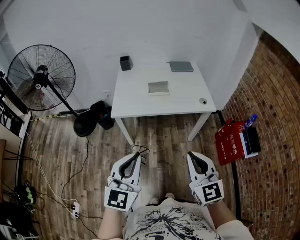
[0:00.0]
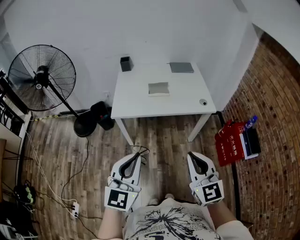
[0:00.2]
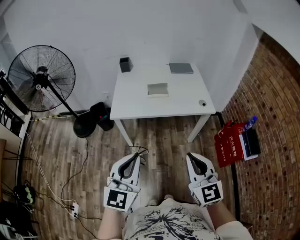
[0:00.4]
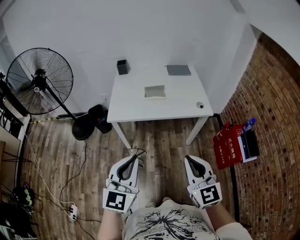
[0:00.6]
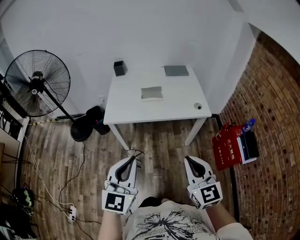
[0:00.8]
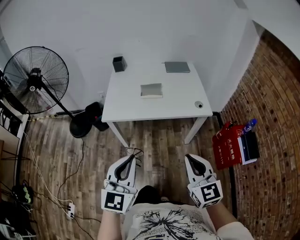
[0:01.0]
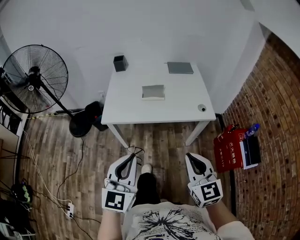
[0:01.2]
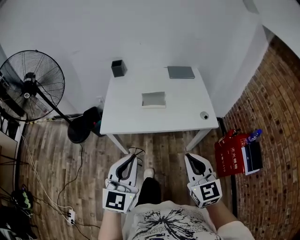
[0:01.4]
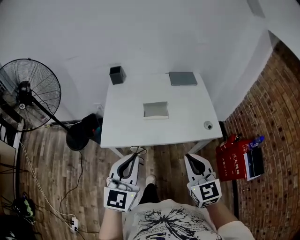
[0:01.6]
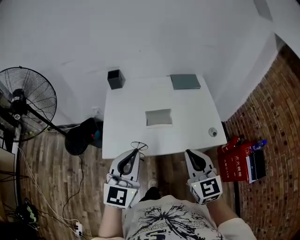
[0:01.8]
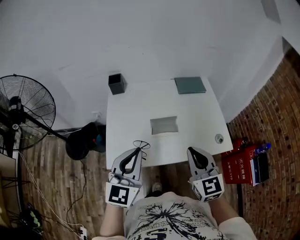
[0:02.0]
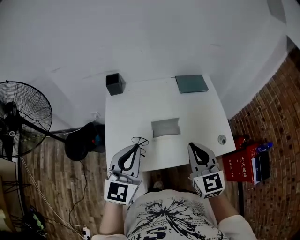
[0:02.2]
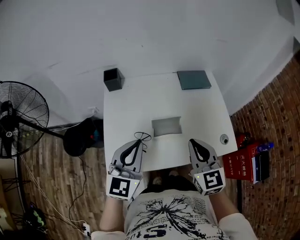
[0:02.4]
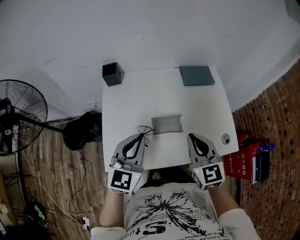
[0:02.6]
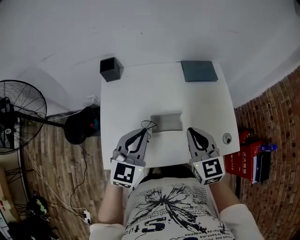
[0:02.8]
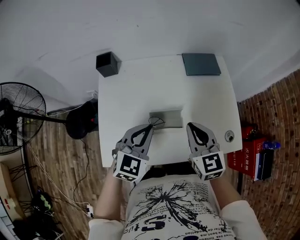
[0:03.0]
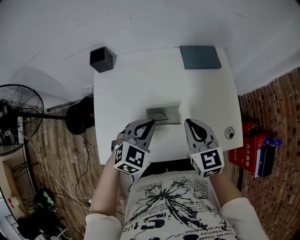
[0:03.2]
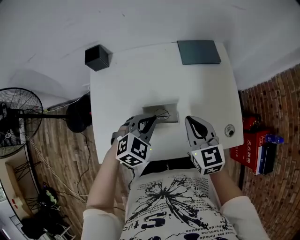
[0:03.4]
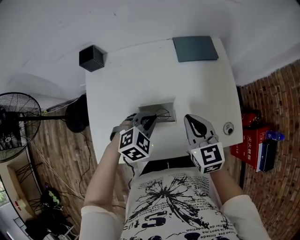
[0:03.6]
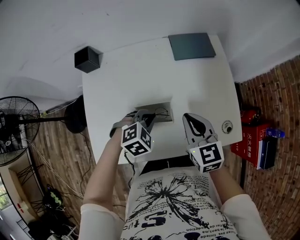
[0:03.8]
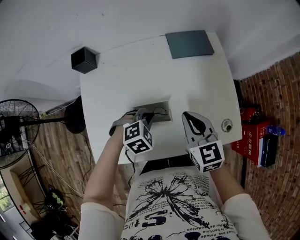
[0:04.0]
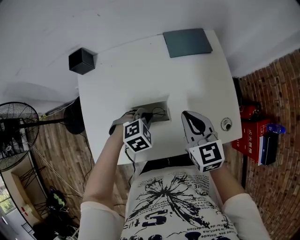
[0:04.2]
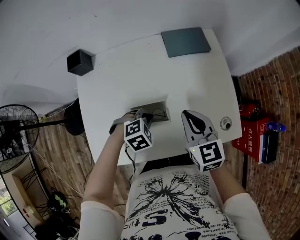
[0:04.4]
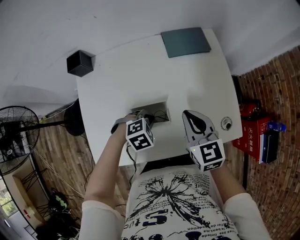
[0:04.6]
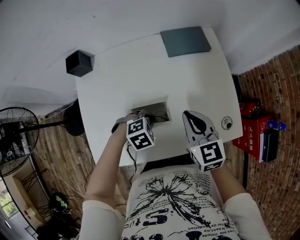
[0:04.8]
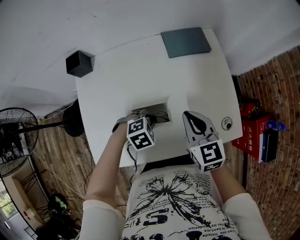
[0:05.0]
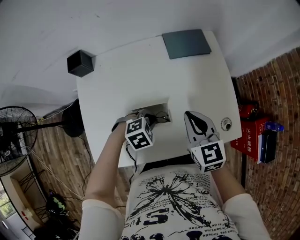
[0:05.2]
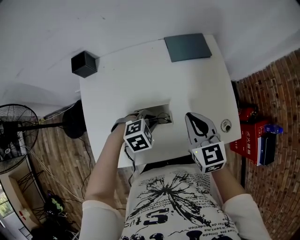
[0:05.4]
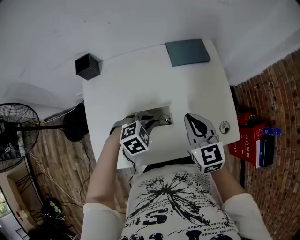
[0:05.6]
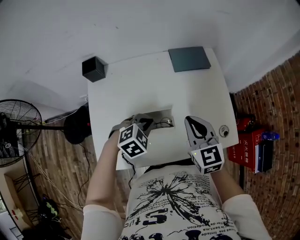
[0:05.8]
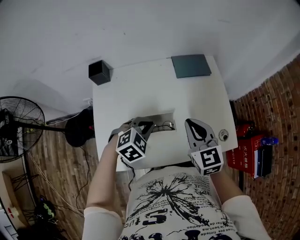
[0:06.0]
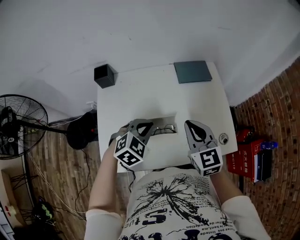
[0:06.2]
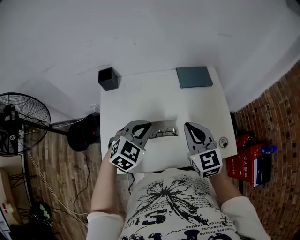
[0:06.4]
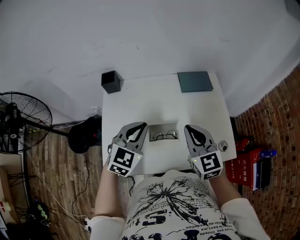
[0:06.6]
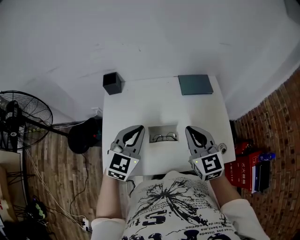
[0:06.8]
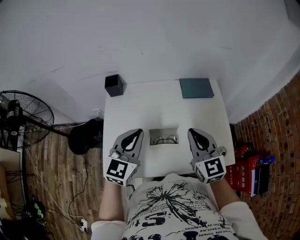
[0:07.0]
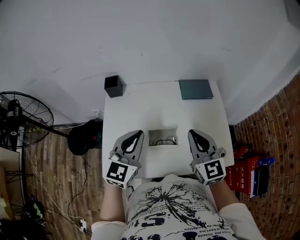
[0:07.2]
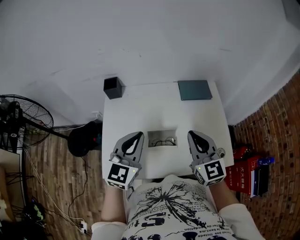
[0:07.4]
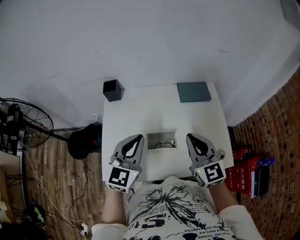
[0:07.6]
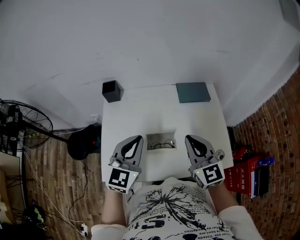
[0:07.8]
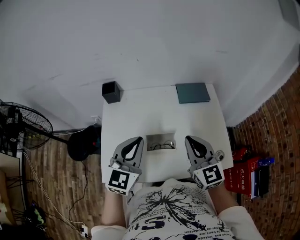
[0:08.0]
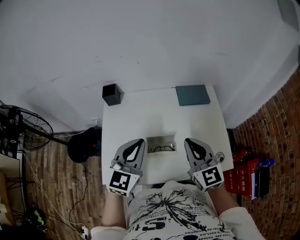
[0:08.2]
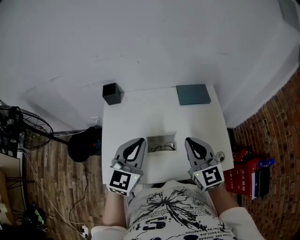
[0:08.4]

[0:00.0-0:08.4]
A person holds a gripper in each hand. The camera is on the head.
0:00.0 to 0:01.4: Both grippers move forward, approximately 15 cm.
0:01.4 to 0:02.8: Both grippers are carried forward, some 40 cm. The left gripper changes its angle by some 20 degrees.
0:02.8 to 0:04.2: The right gripper heads downward, to the right and forward, covering approximately 10 cm. Meanwhile the left gripper is displaced downward and to the right by roughly 25 cm, and tips its fingers downward by roughly 50 degrees.
0:04.2 to 0:05.6: The grippers stay close to where they were, moving slightly.
0:05.6 to 0:07.0: The right gripper moves upward, about 10 cm. Meanwhile the left gripper heads upward, covering roughly 20 cm, and points its fingers roughly 50 degrees further upward.
0:07.0 to 0:08.4: There are only small adjustments of the grippers.

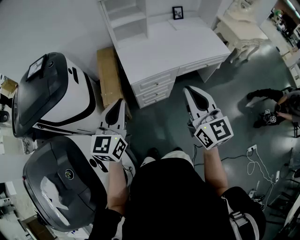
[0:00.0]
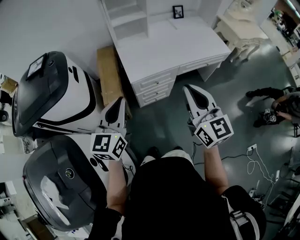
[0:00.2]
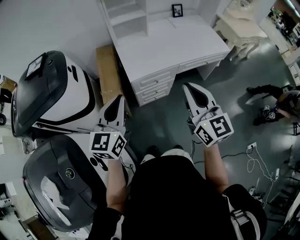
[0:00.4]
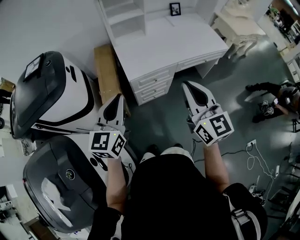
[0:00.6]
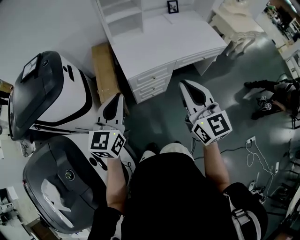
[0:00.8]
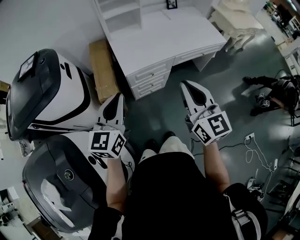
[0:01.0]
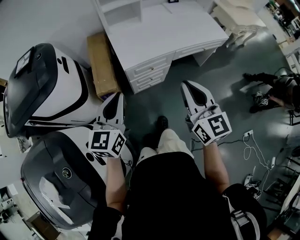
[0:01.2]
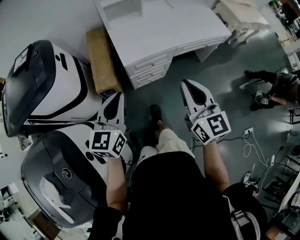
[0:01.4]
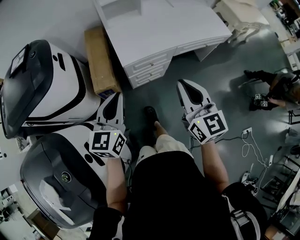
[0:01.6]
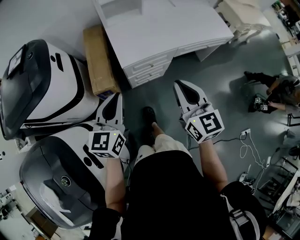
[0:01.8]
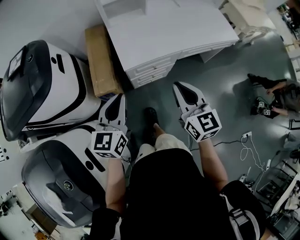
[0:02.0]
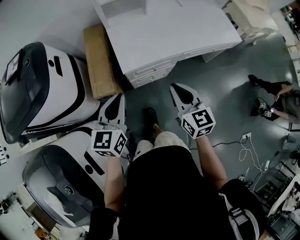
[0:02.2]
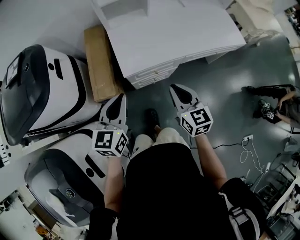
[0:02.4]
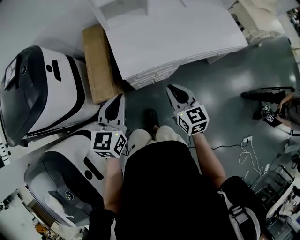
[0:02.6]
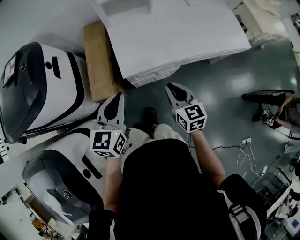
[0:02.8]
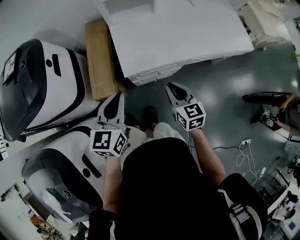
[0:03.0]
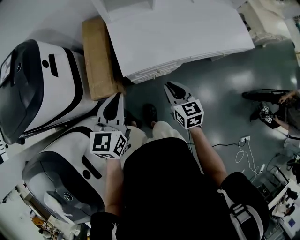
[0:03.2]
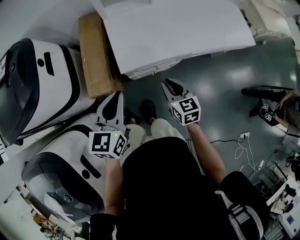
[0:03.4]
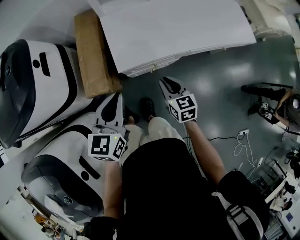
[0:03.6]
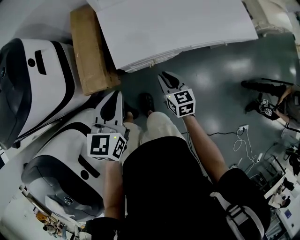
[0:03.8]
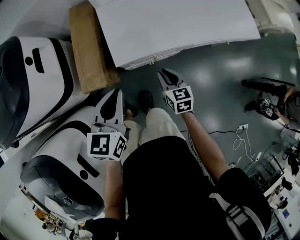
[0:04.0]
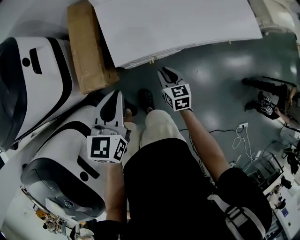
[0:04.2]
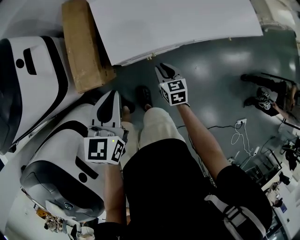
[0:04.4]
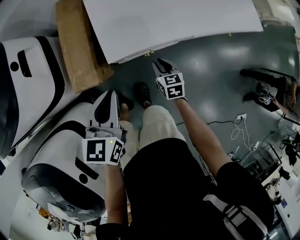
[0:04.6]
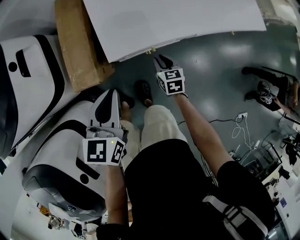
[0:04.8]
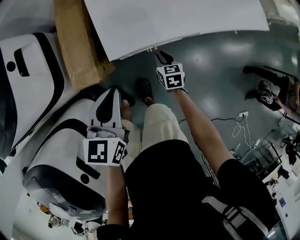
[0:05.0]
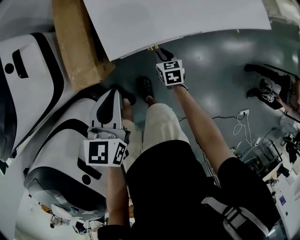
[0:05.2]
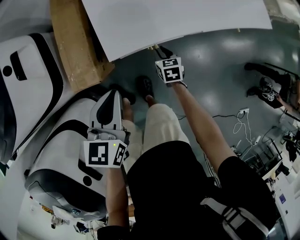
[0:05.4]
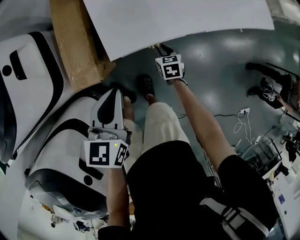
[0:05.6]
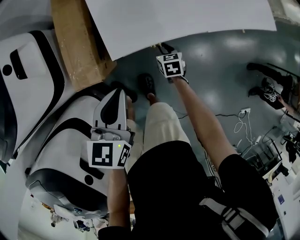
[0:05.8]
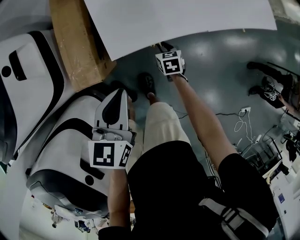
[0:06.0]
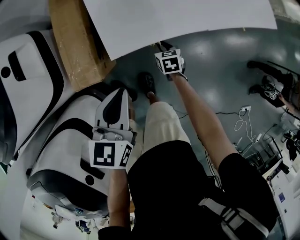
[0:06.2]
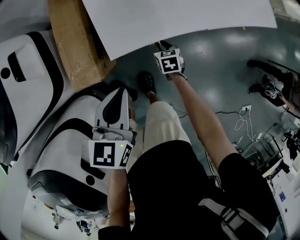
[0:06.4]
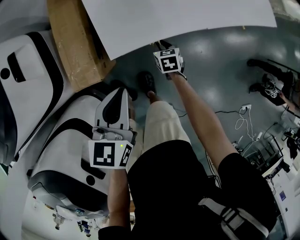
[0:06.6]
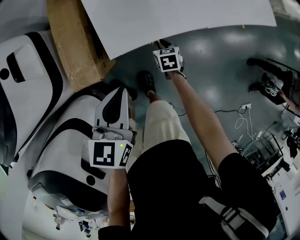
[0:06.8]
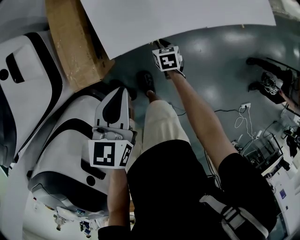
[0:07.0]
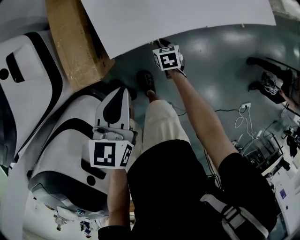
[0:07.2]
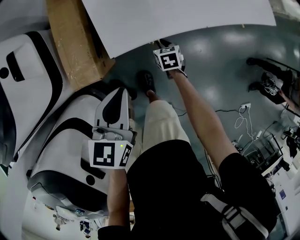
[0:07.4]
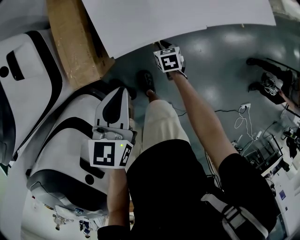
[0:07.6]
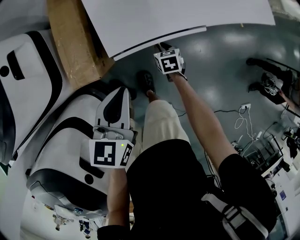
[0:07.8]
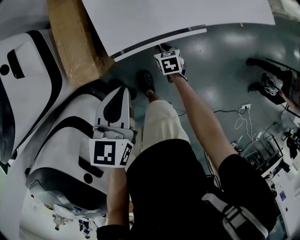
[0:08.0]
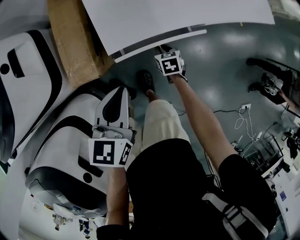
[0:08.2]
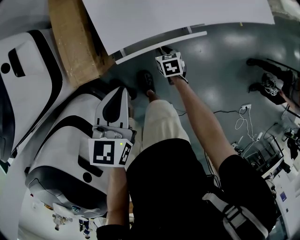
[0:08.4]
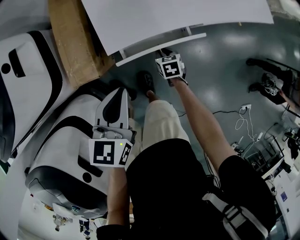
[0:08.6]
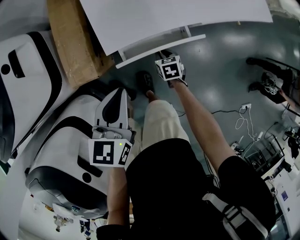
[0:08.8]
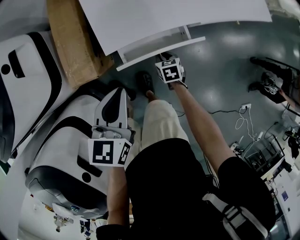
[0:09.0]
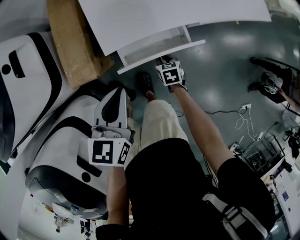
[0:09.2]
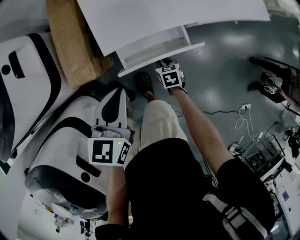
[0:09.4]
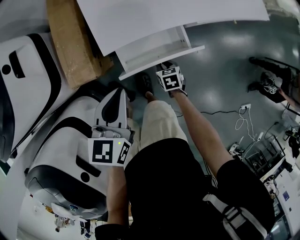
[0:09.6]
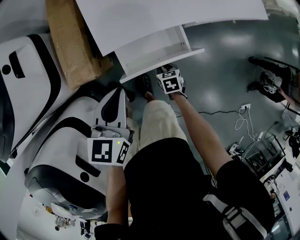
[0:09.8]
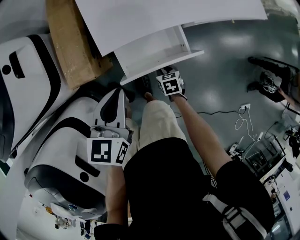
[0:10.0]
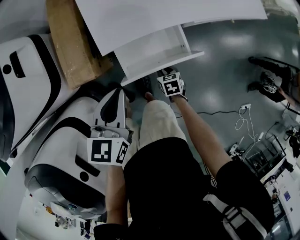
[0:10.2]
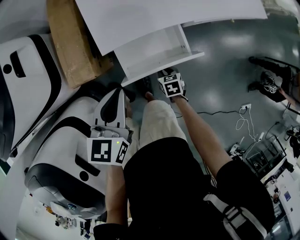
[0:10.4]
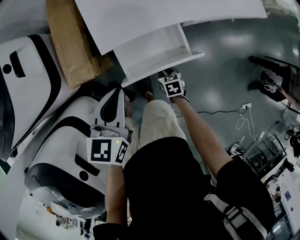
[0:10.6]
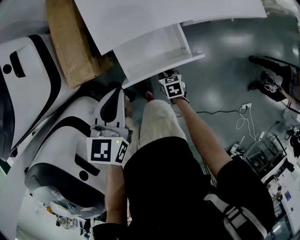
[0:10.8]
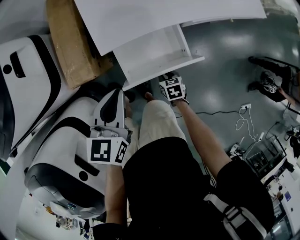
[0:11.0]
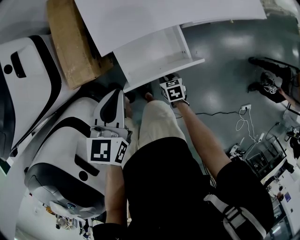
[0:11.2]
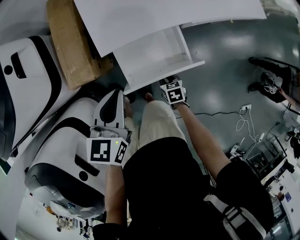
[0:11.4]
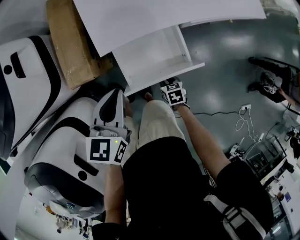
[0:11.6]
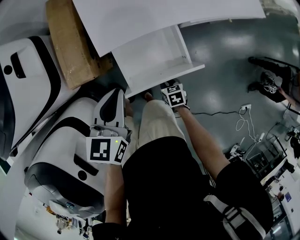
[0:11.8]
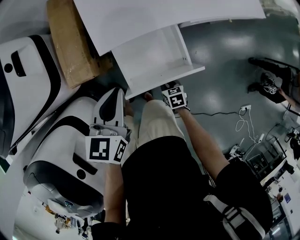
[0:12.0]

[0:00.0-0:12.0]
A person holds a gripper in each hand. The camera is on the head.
0:00.0 to 0:01.6: The two grippers go roughly 5 cm downward.
0:01.6 to 0:03.0: The right gripper heads downward and forward, covering some 30 cm, and swivels approximately 20 degrees, while the left gripper is displaced forward by some 15 cm.
0:03.0 to 0:04.4: The left gripper moves downward, some 10 cm, while the right gripper is displaced downward by roughly 20 cm.
0:04.4 to 0:06.0: The left gripper heads downward, covering roughly 5 cm; the right gripper is displaced downward and forward by approximately 15 cm.
0:06.0 to 0:07.6: The two grippers keep their place.
0:07.6 to 0:09.0: The right gripper heads backward, covering roughly 5 cm.
0:09.0 to 0:10.4: The right gripper is displaced backward by roughly 10 cm.
0:10.4 to 0:12.0: The right gripper goes roughly 5 cm backward.

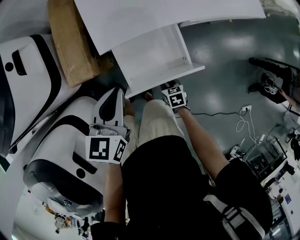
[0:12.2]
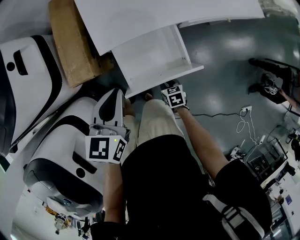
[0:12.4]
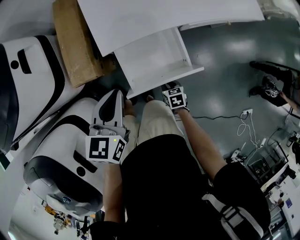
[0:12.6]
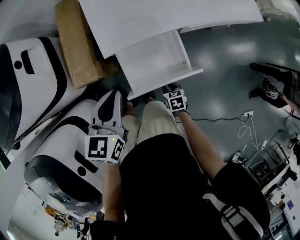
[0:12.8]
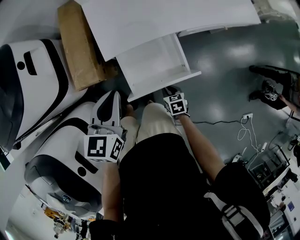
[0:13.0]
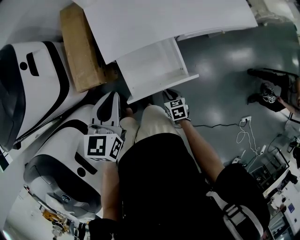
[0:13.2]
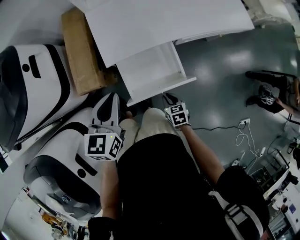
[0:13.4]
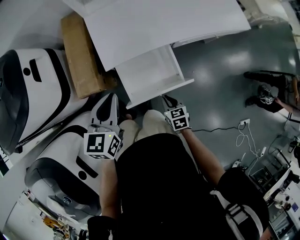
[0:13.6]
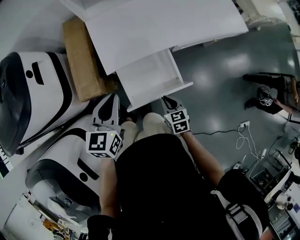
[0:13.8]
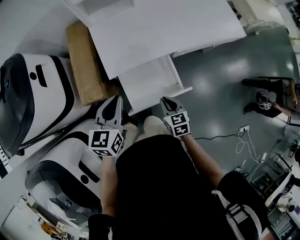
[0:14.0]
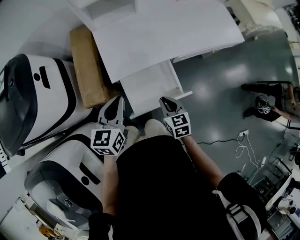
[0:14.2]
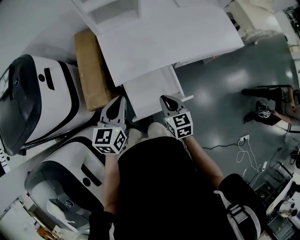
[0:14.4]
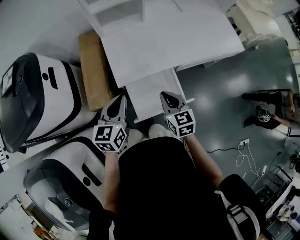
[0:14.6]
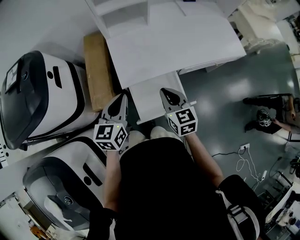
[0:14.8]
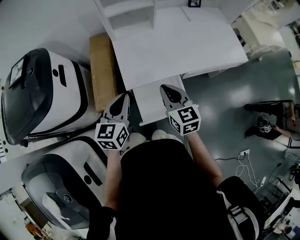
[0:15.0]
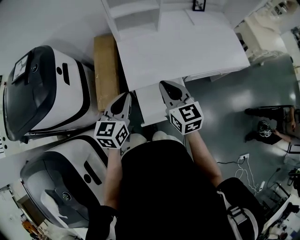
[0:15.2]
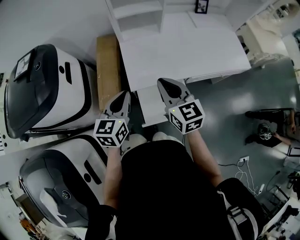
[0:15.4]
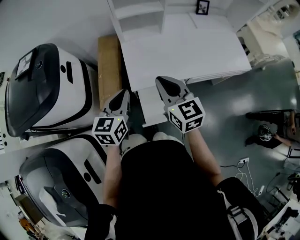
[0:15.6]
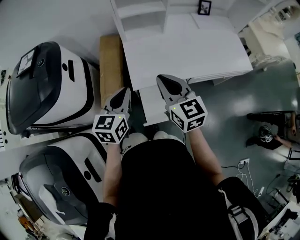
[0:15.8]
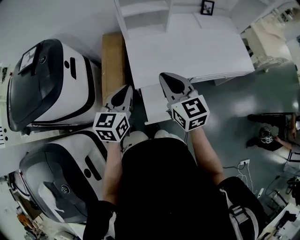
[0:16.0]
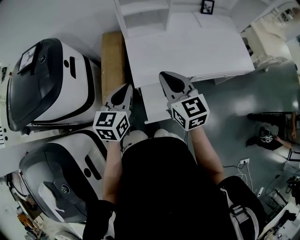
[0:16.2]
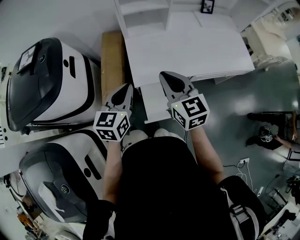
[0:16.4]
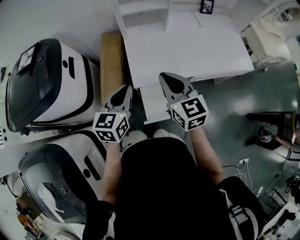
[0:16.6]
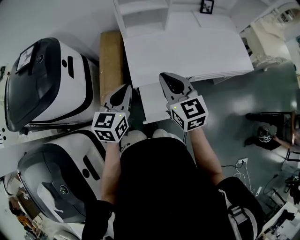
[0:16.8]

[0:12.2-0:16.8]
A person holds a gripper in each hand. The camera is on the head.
0:12.2 to 0:13.8: The left gripper travels upward by roughly 5 cm, while the right gripper is displaced upward by approximately 15 cm.
0:13.8 to 0:15.2: The left gripper goes about 5 cm upward. The right gripper goes some 30 cm upward and forward, and rotates about 30 degrees.
0:15.2 to 0:16.8: The right gripper changes place by roughly 5 cm.
